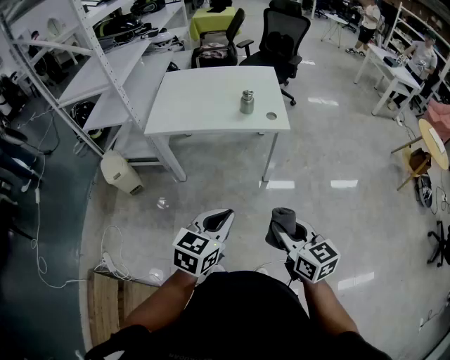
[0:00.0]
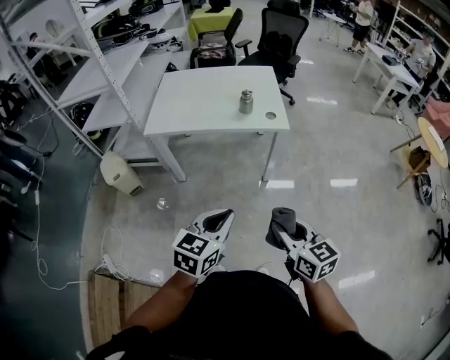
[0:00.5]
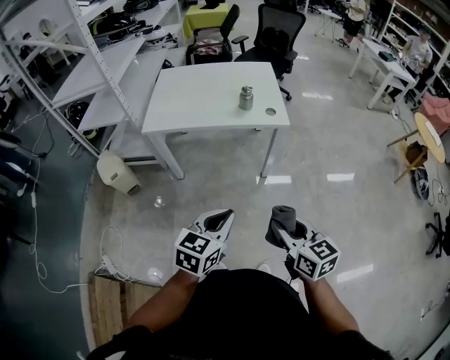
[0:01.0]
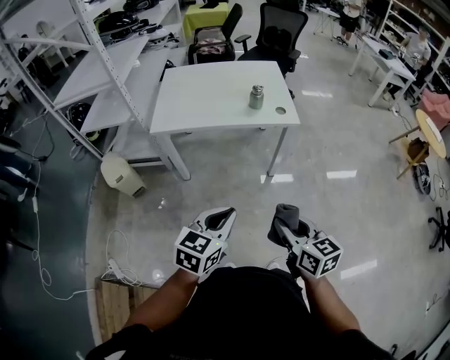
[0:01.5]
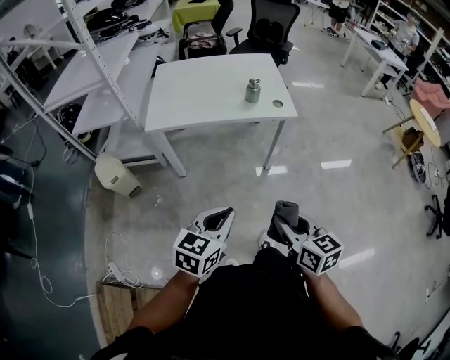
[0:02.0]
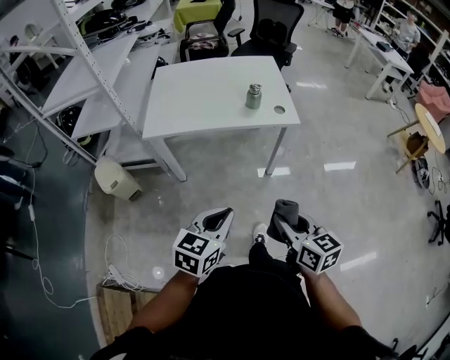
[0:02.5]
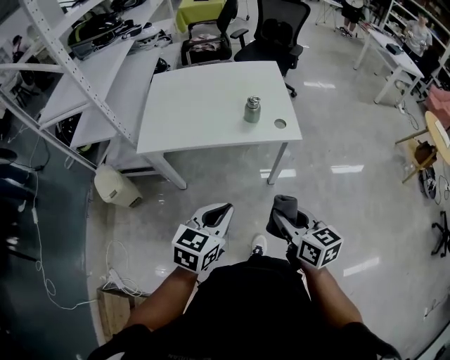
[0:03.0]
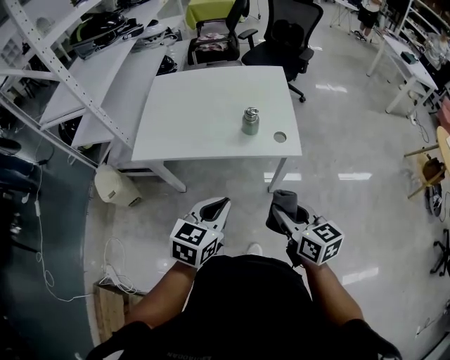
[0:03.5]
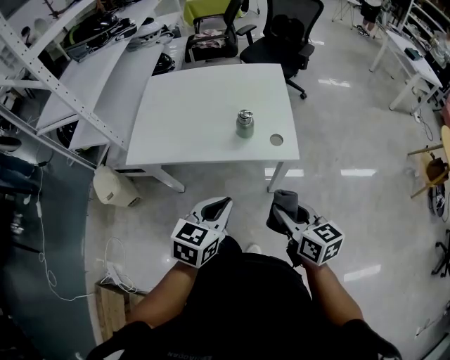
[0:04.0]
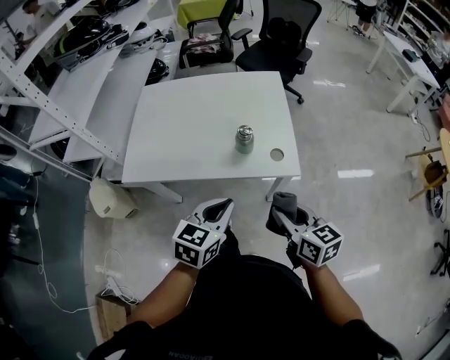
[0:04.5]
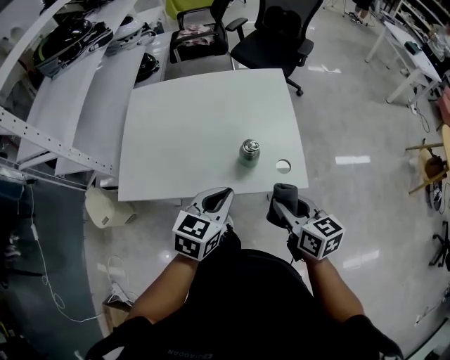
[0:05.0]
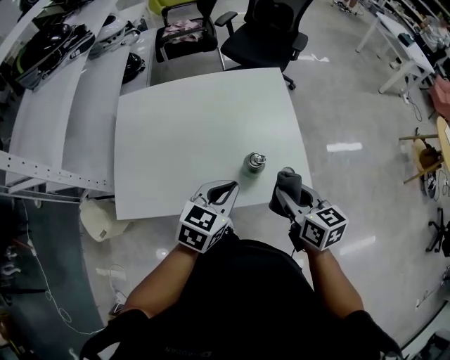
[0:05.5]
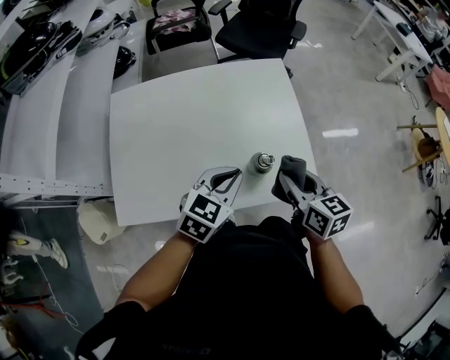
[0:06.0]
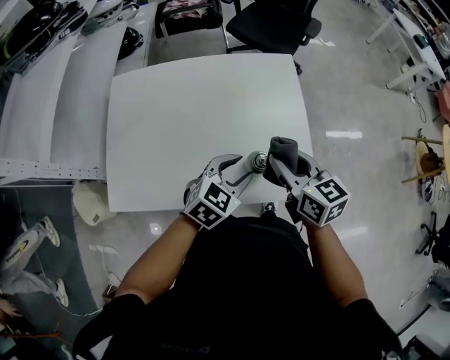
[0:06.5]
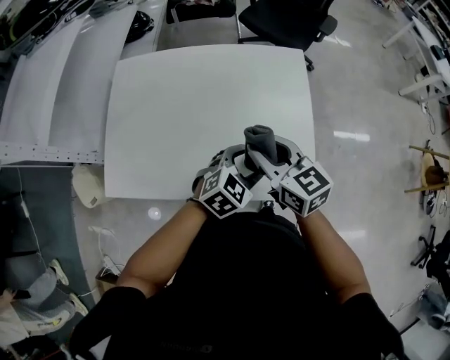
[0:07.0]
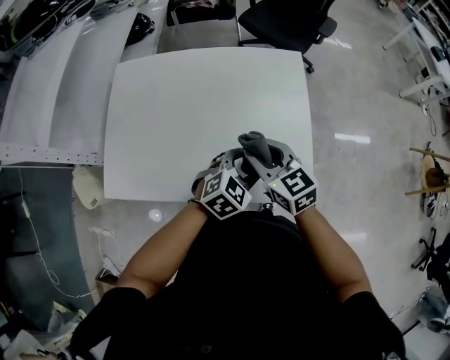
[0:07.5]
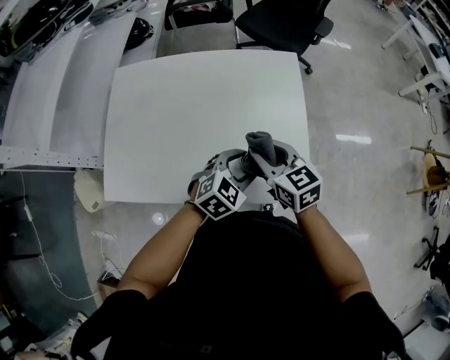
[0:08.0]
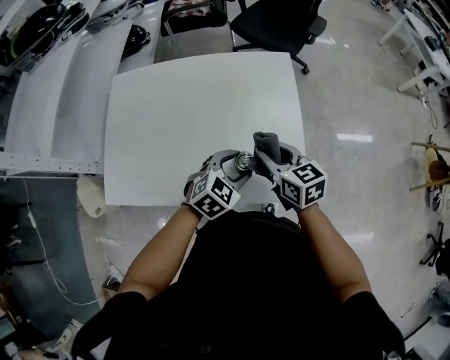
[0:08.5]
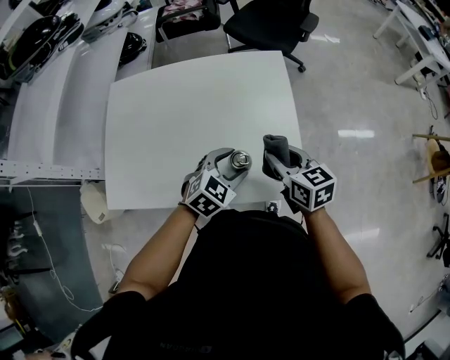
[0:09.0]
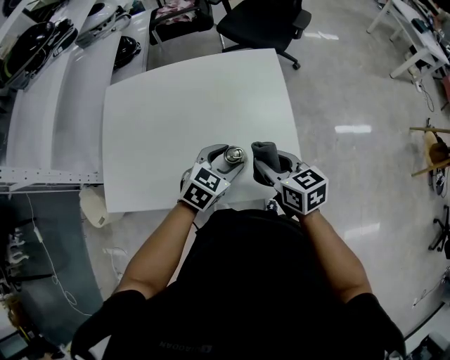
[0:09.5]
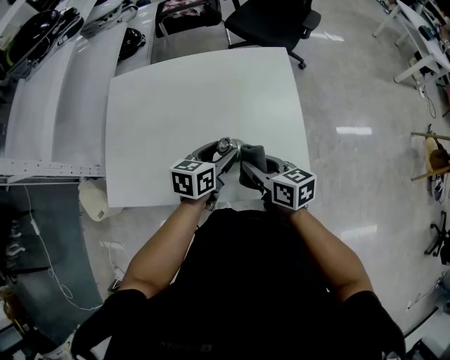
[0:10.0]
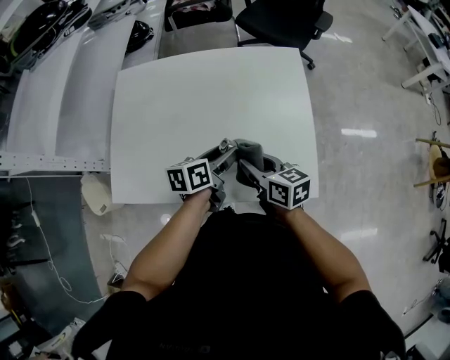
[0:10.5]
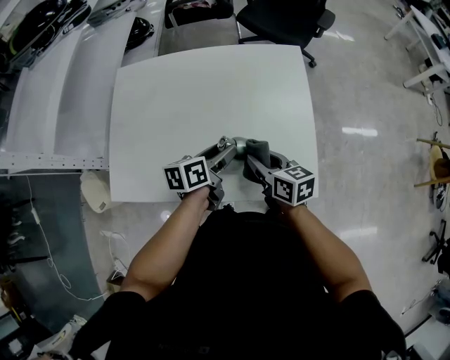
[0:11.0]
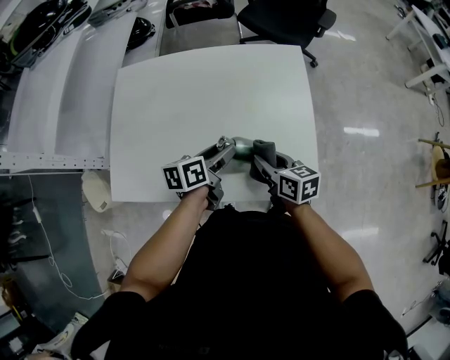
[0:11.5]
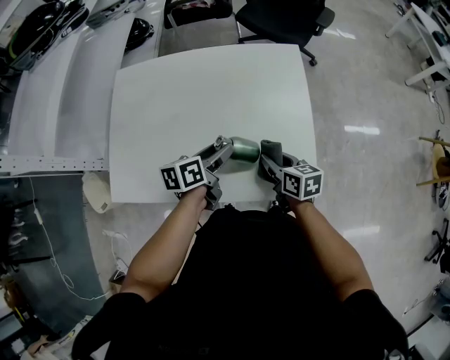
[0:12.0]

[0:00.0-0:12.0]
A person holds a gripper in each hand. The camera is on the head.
0:00.0 to 0:02.0: Both grippers move to the left, some 10 cm.
0:02.0 to 0:04.0: The left gripper moves forward and to the right, some 30 cm. Meanwhile the right gripper is displaced forward by about 30 cm.
0:04.0 to 0:06.0: Both grippers move forward, some 30 cm. The left gripper changes its angle by some 20 degrees.
0:06.0 to 0:08.0: The left gripper is displaced downward and to the right by roughly 10 cm, and opens; the right gripper shifts some 5 cm forward, and turns by roughly 30 degrees.
0:08.0 to 0:10.0: The right gripper moves approximately 10 cm to the right and comes back, and swivels roughly 20 degrees; the left gripper goes roughly 5 cm to the left, and twists approximately 40 degrees counterclockwise, seen from behind.
0:10.0 to 0:12.0: The right gripper travels downward by roughly 5 cm, while the left gripper rotates approximately 20 degrees.

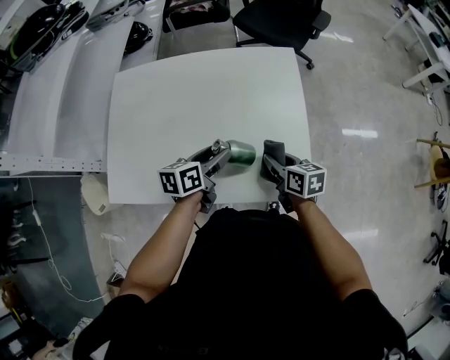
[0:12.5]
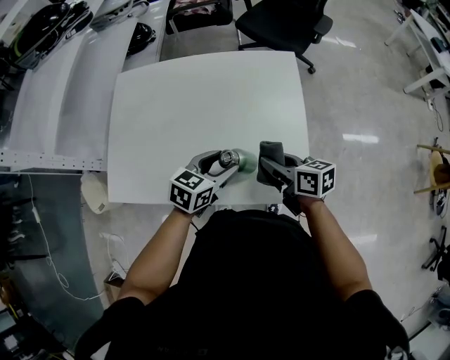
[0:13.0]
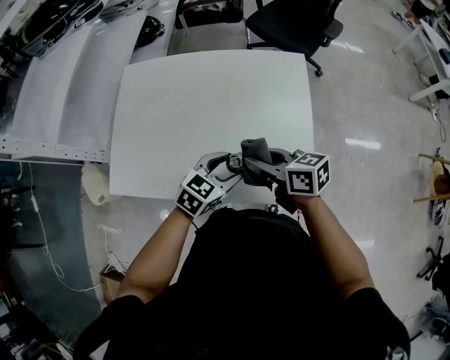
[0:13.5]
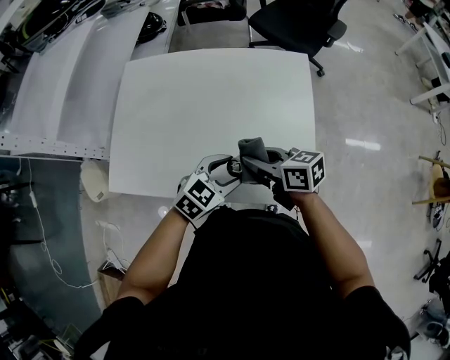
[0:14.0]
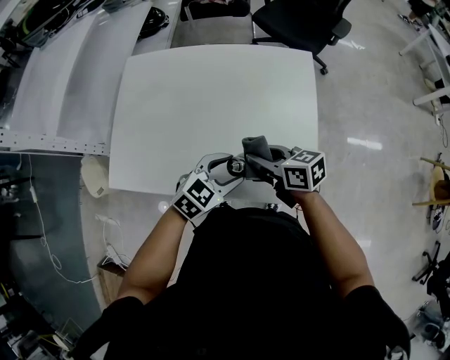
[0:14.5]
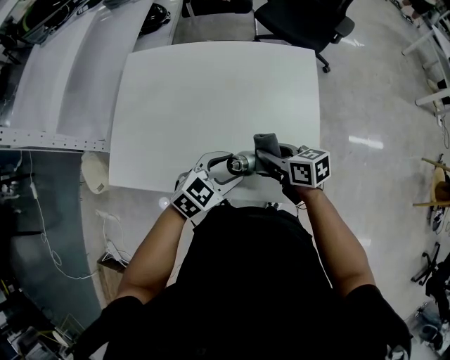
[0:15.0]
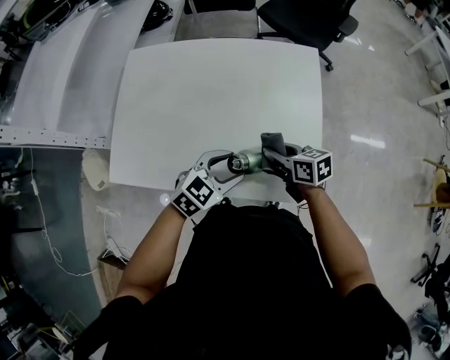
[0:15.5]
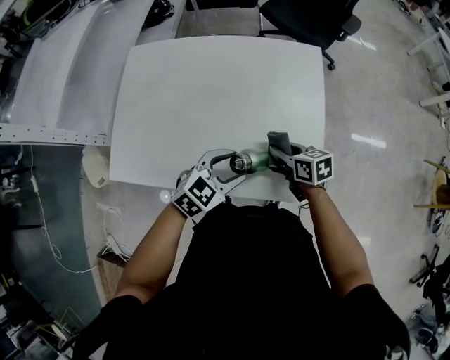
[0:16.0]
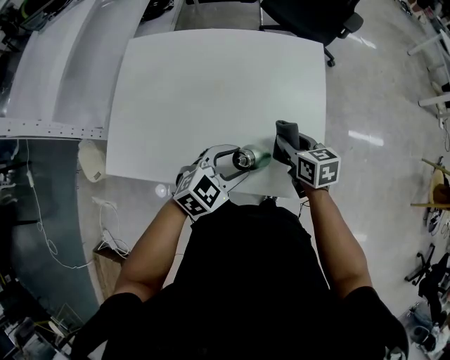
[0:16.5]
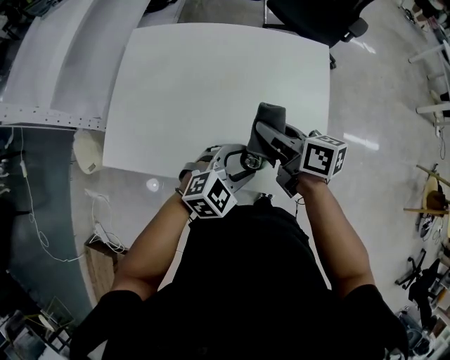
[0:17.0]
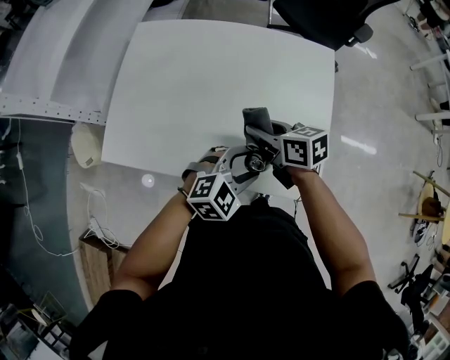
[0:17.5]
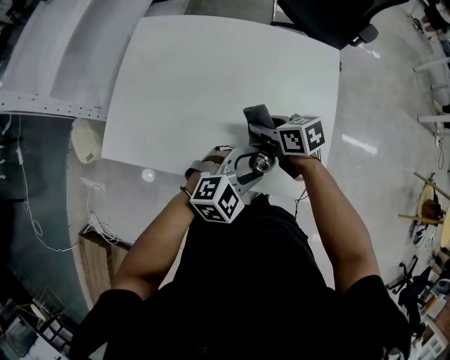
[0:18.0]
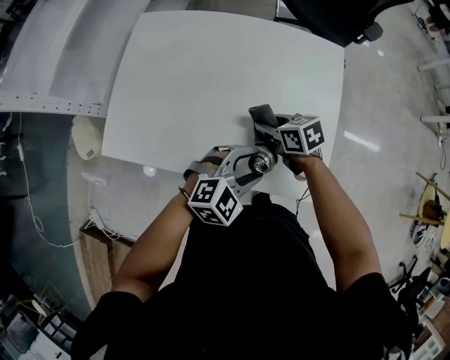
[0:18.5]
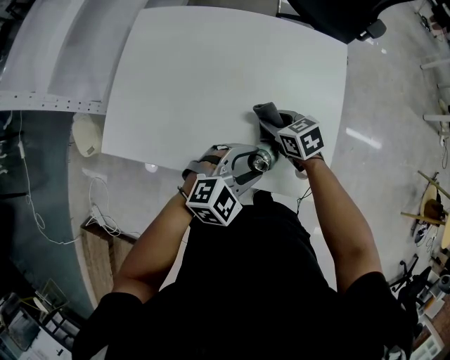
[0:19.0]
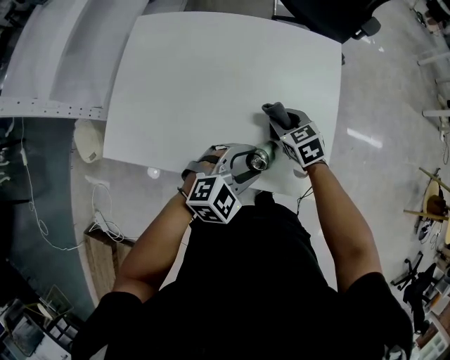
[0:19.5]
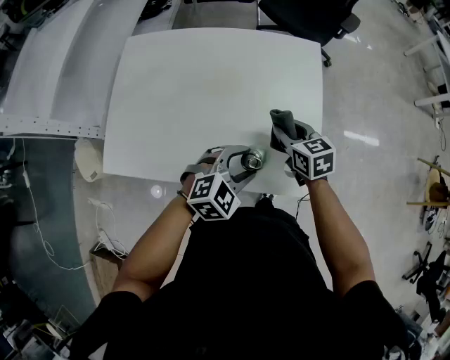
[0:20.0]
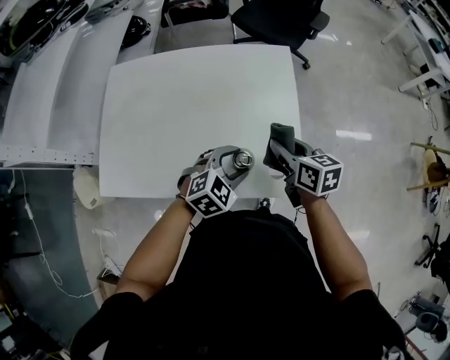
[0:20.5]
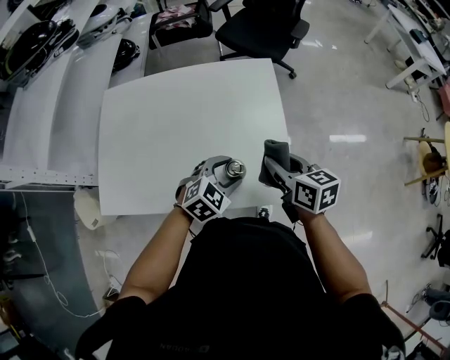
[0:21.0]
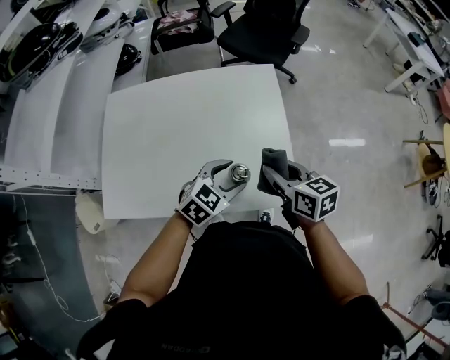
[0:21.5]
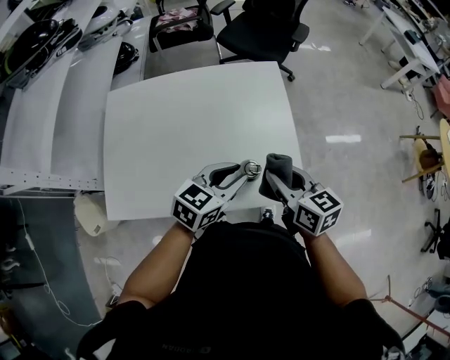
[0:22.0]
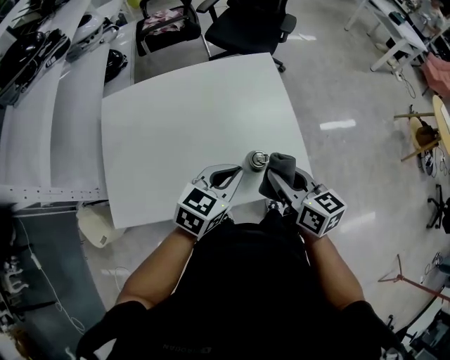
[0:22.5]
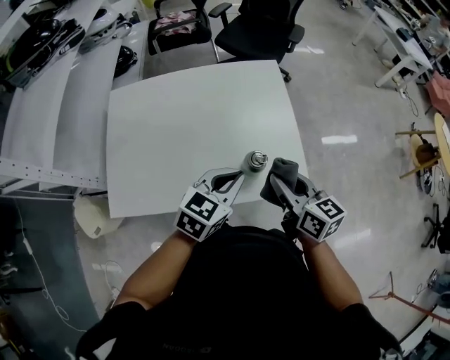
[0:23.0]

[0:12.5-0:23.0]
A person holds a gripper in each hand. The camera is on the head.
0:12.5 to 0:14.5: The right gripper heads to the left and upward, covering some 10 cm, and rotates about 30 degrees. The left gripper travels backward by approximately 5 cm, and twists roughly 50 degrees clockwise, seen from behind.
0:14.5 to 0:16.5: The right gripper moves to the right, approximately 10 cm, and changes its angle by approximately 30 degrees.
0:16.5 to 0:19.0: The right gripper goes upward and returns, some 10 cm each way, and changes its angle by approximately 30 degrees.
0:19.0 to 0:21.0: The left gripper ends up approximately 5 cm from where it was. The right gripper moves to the right and upward, some 20 cm, and rotates about 40 degrees.
0:21.0 to 0:23.0: The left gripper travels upward and backward by roughly 10 cm, rotates some 30 degrees, and closes its fingers; the right gripper travels backward by roughly 10 cm.

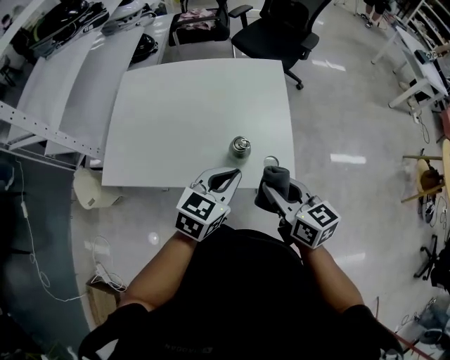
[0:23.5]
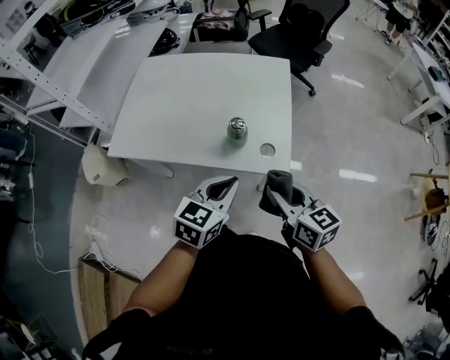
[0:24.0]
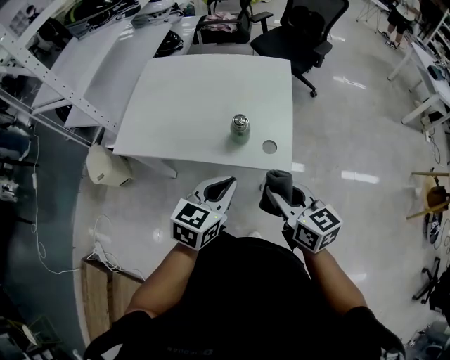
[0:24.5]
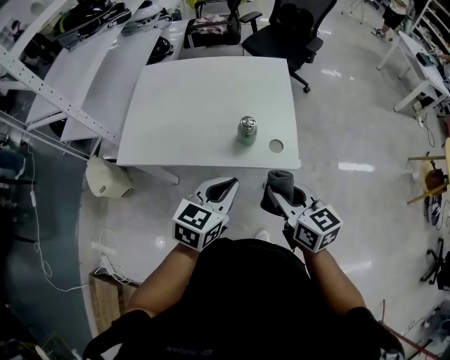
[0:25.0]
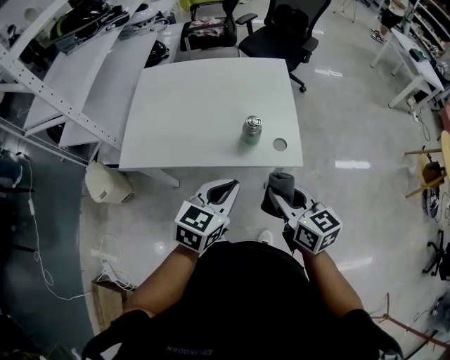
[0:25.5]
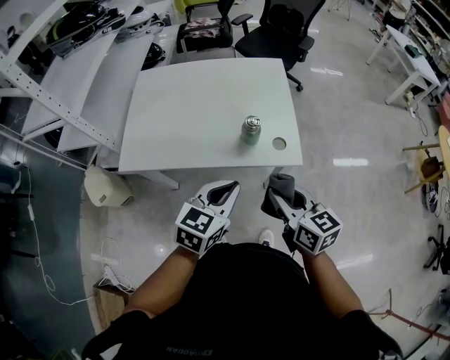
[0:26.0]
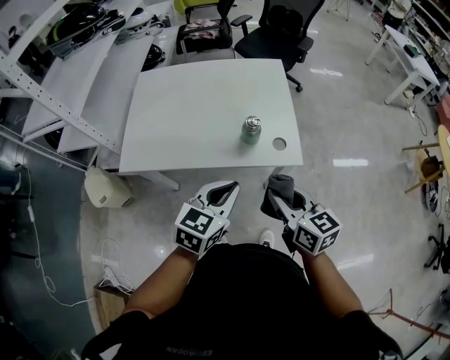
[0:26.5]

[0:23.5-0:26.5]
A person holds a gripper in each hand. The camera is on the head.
0:23.5 to 0:25.0: The grippers both shift backward by roughly 10 cm.
0:25.0 to 0:26.5: There are only small adjustments of the grippers.

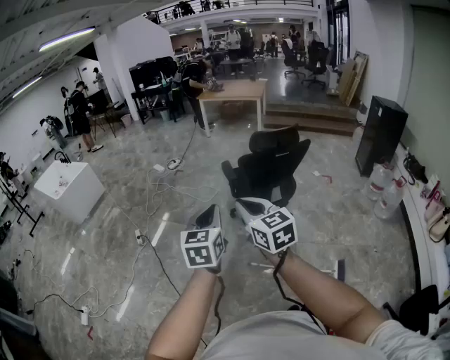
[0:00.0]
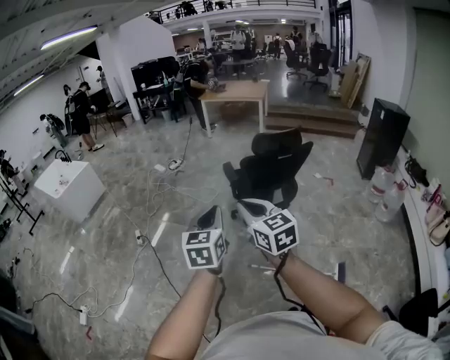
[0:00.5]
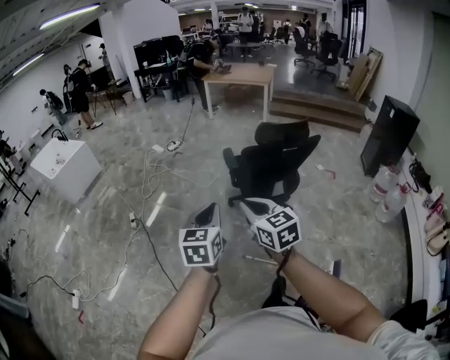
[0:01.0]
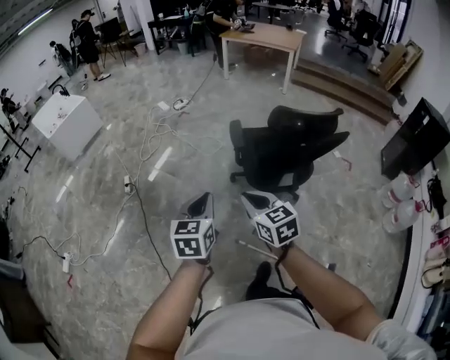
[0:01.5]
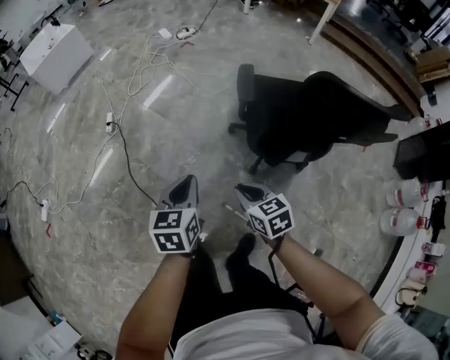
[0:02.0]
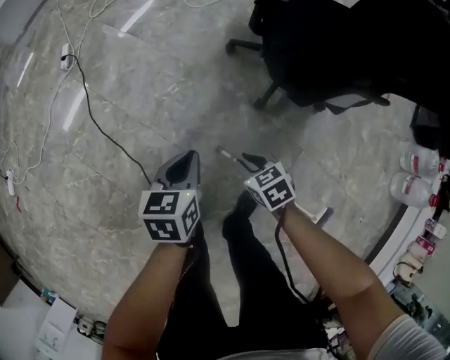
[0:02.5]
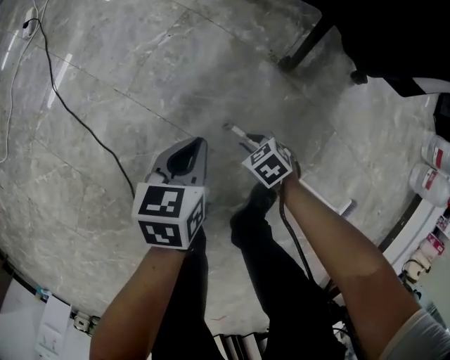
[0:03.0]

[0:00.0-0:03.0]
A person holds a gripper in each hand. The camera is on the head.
0:00.0 to 0:01.5: The right gripper is displaced forward, downward and to the right by approximately 30 cm, and rotates about 20 degrees; the left gripper is displaced forward and downward by some 25 cm.
0:01.5 to 0:03.0: Both grippers travel together downward, approximately 90 cm. The right gripper points its fingers approximately 50 degrees further downward. The left gripper rotates roughly 30 degrees.
